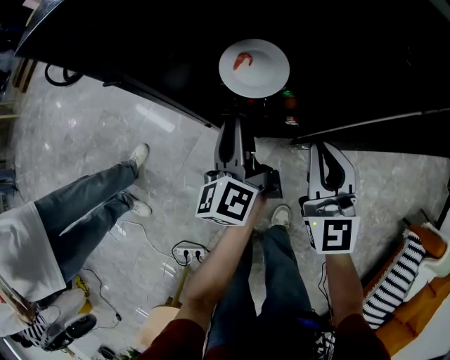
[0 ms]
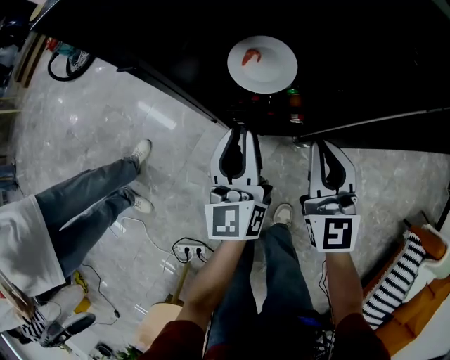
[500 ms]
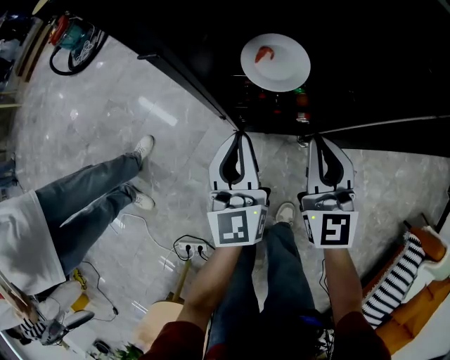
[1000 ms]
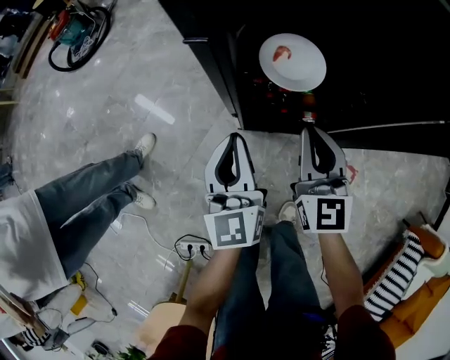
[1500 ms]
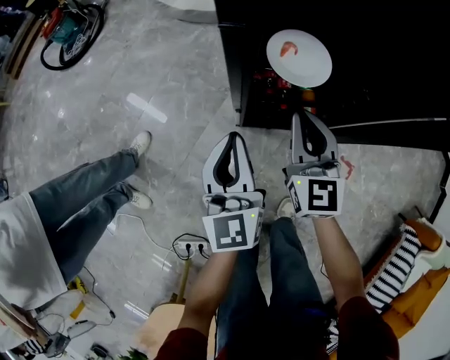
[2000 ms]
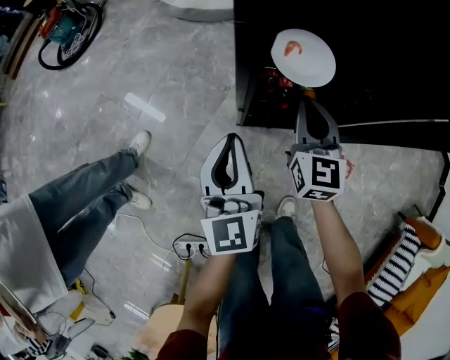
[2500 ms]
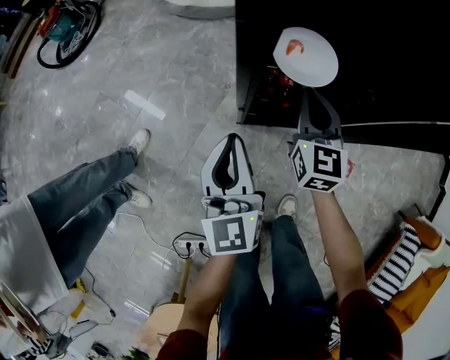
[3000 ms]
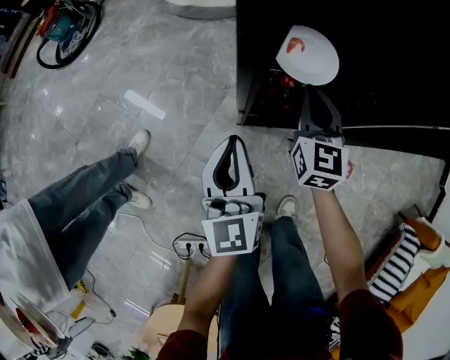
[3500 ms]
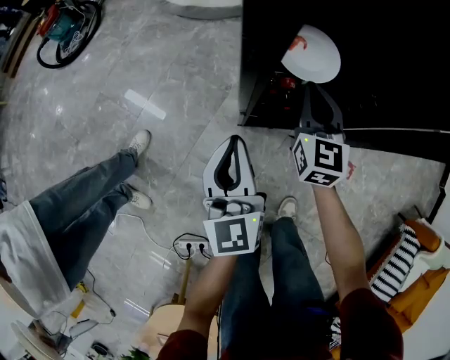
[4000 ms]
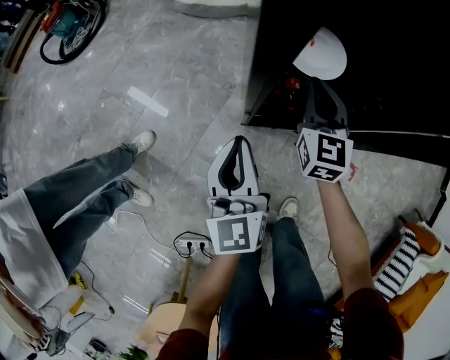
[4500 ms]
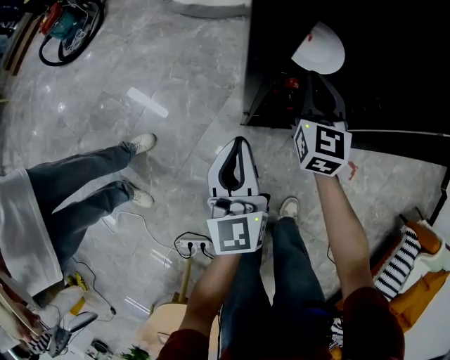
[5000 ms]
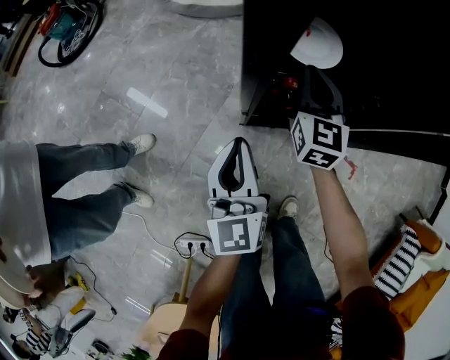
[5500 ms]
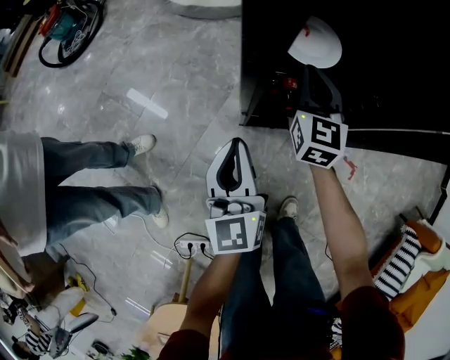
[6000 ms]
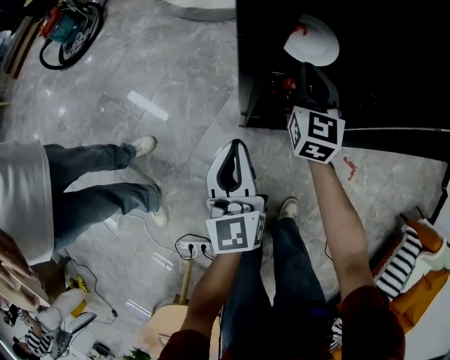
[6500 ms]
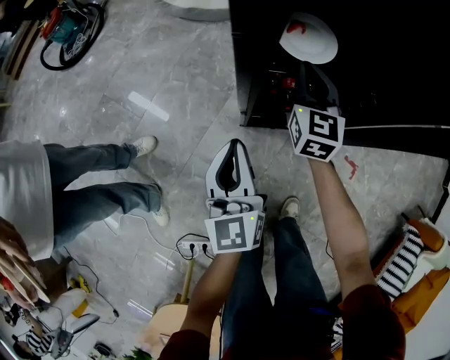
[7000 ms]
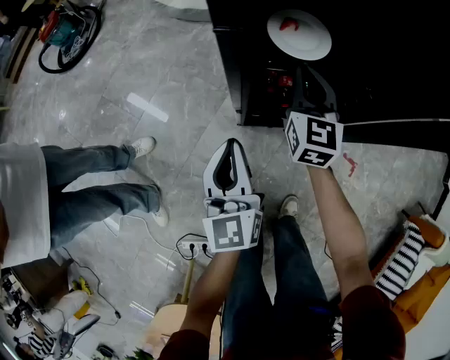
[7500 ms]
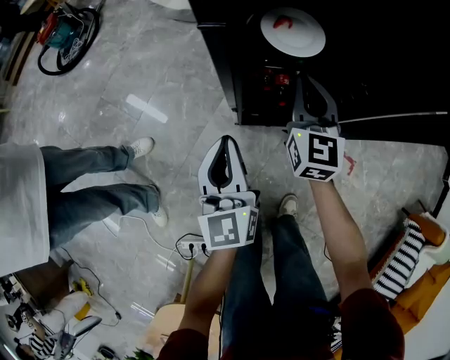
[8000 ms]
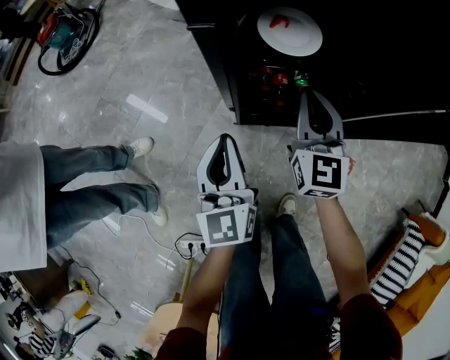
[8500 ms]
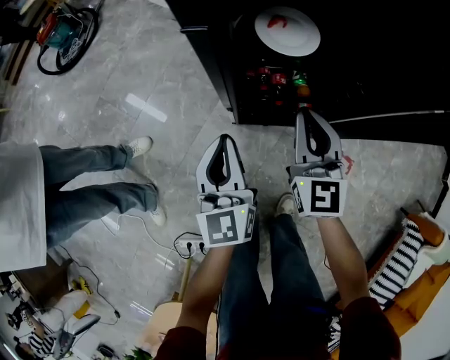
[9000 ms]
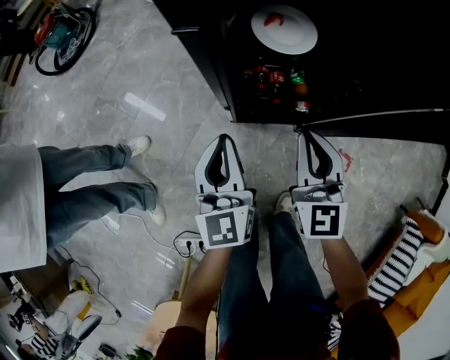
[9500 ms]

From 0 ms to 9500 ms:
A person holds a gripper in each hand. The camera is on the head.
From 0 ms to 2000 ms: The right gripper moves to the left and forward, about 10 cm. The left gripper moves to the left and backward, approximately 10 cm, and rolls clockwise, seen from behind, by about 40 degrees.
From 2000 ms to 4000 ms: The right gripper moves forward, approximately 10 cm.
From 4000 ms to 7500 ms: The grippers move only a little.
From 7500 ms to 9500 ms: The right gripper goes some 15 cm backward.

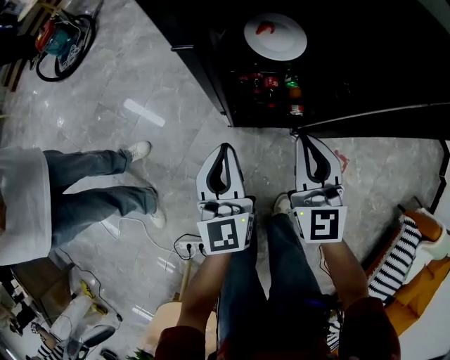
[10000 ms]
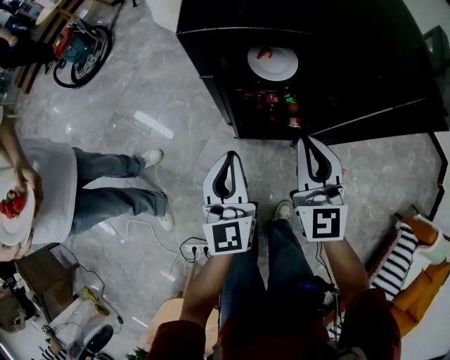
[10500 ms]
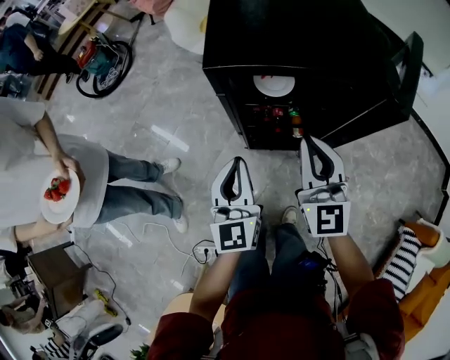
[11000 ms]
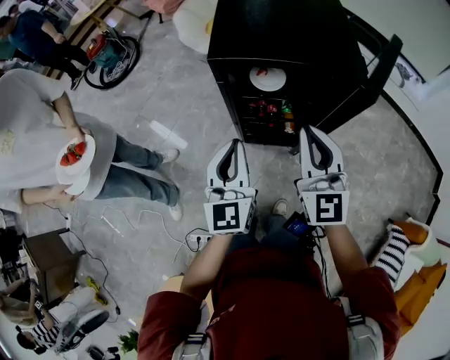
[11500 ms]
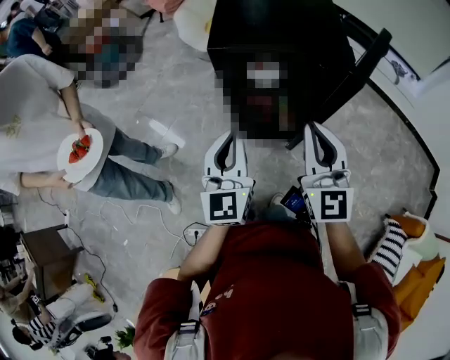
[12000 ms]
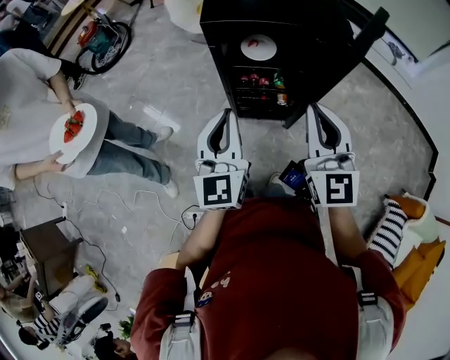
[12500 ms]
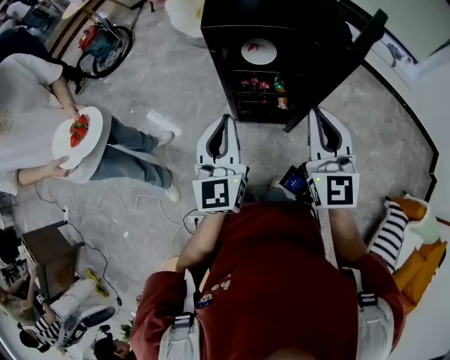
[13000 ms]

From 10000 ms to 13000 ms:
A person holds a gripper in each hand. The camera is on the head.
From 10000 ms to 11500 ms: Both grippers move upward, approximately 25 cm.
From 11500 ms to 13000 ms: The right gripper shifts about 5 cm backward; the left gripper moves roughly 5 cm.

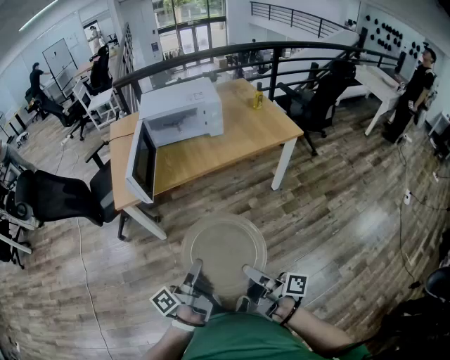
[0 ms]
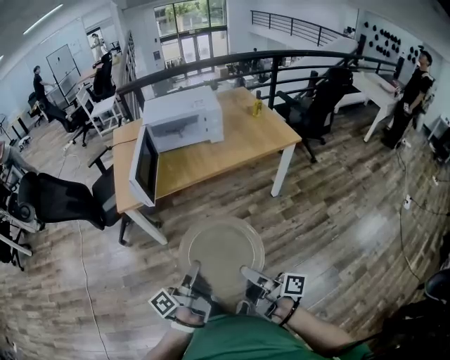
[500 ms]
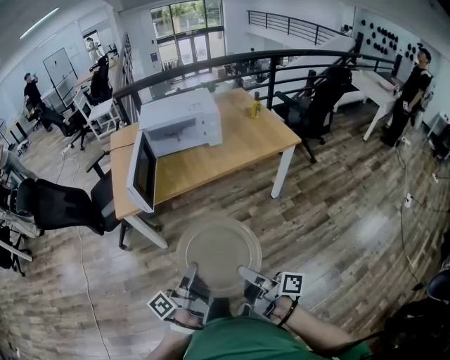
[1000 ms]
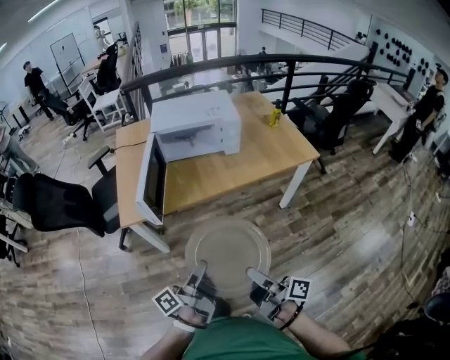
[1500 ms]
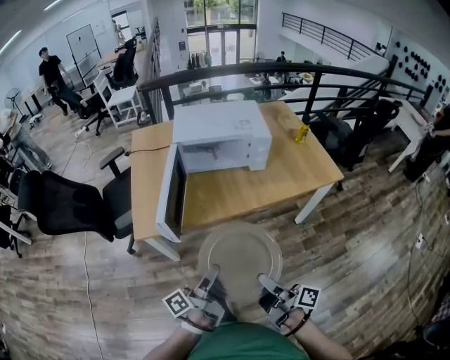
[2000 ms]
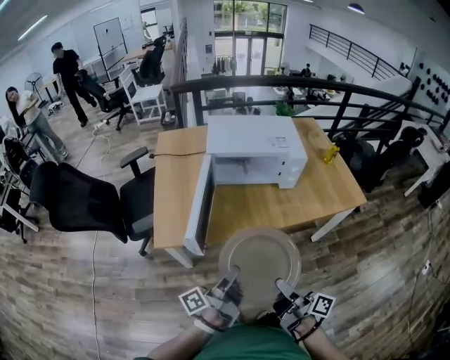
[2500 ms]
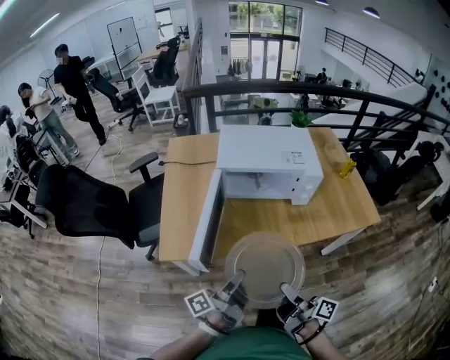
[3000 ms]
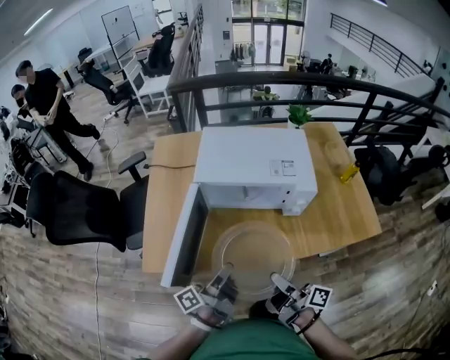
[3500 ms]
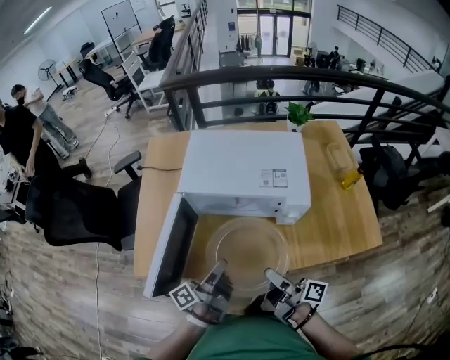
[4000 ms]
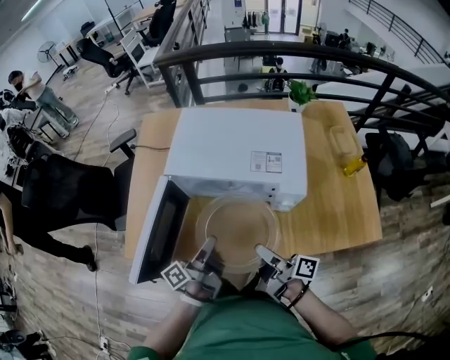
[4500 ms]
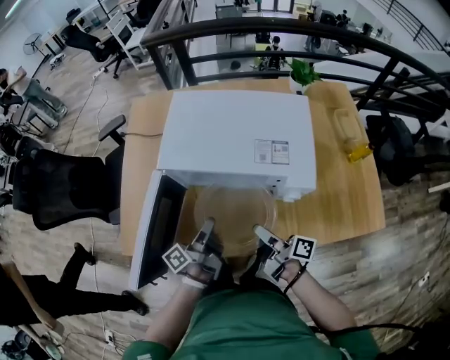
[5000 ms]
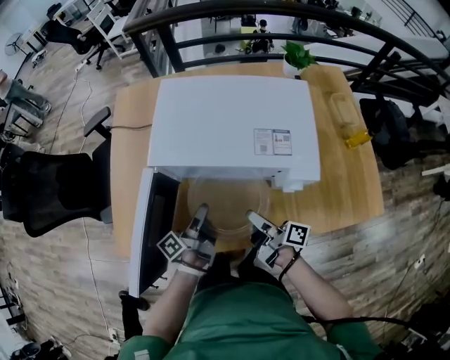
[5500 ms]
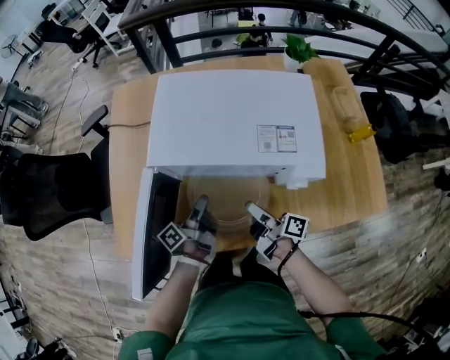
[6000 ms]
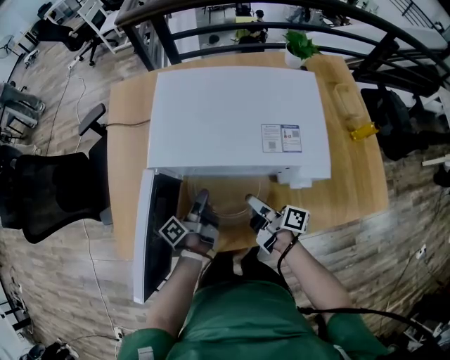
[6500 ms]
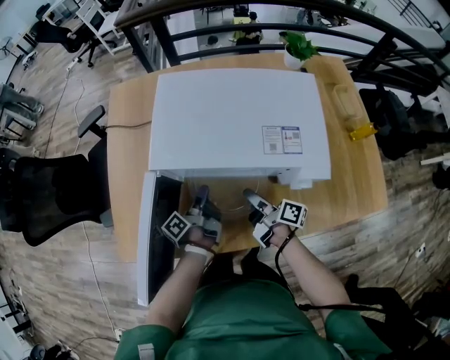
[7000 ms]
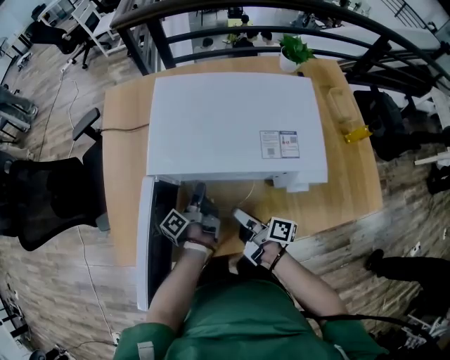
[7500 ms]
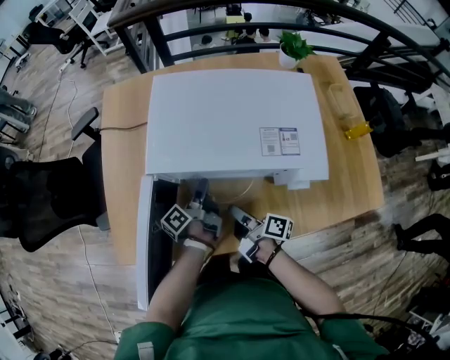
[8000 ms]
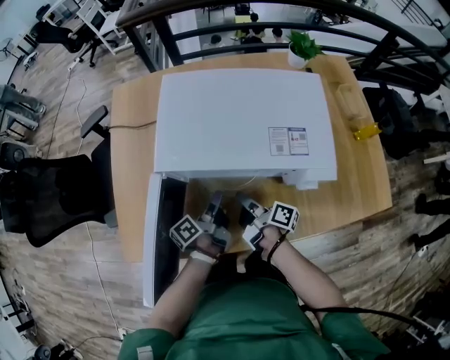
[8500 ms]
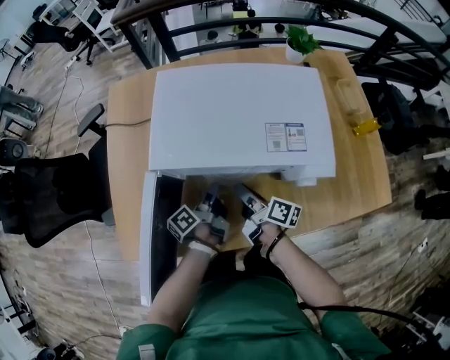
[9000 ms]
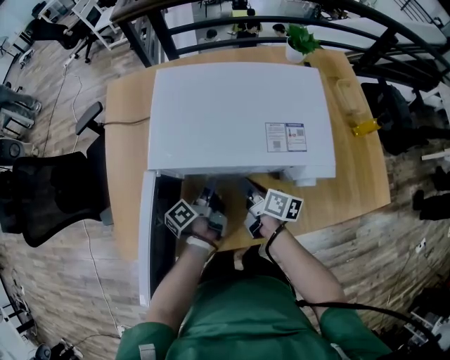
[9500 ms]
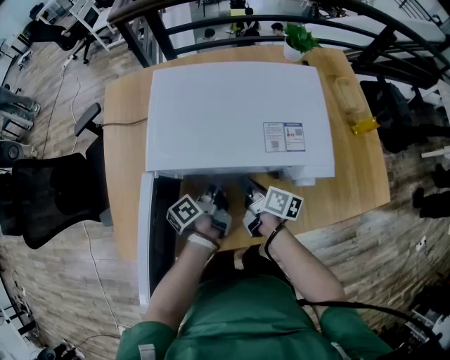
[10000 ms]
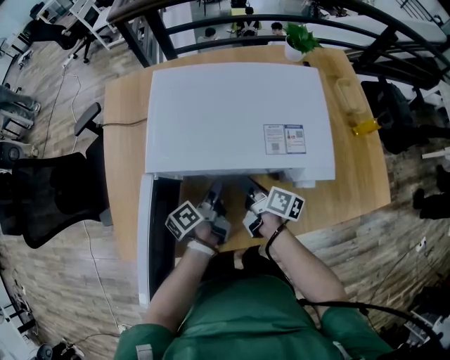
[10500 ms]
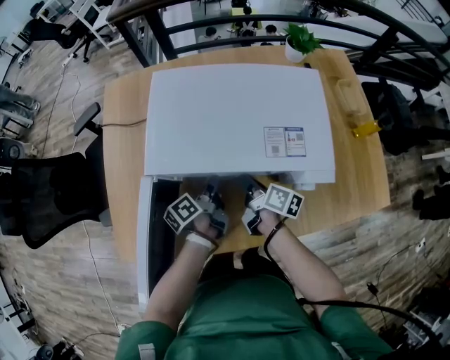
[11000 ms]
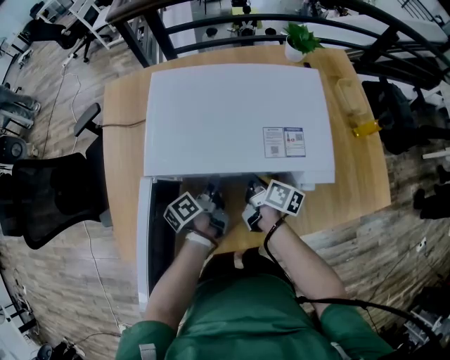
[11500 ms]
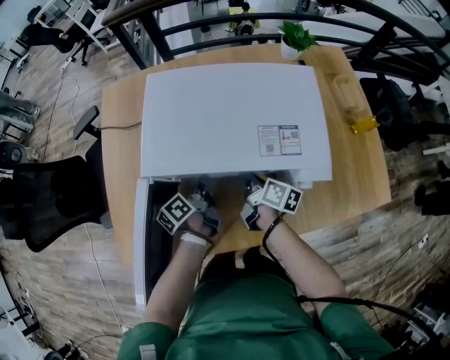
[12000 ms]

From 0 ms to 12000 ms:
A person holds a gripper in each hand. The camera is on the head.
From 0 ms to 2000 ms: The right gripper moves approximately 25 cm.
From 2000 ms to 4000 ms: The right gripper moves some 40 cm.
From 4000 ms to 6000 ms: The right gripper moves roughly 20 cm.
From 6000 ms to 8000 ms: The right gripper ends up approximately 5 cm from where it was.
From 8000 ms to 10000 ms: The right gripper changes place by some 10 cm.

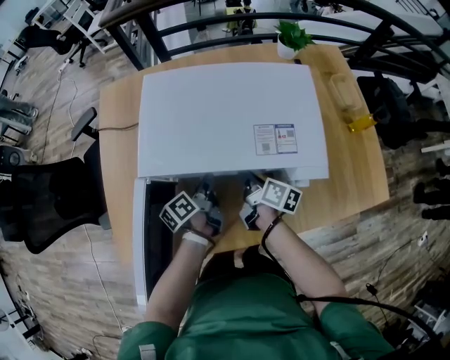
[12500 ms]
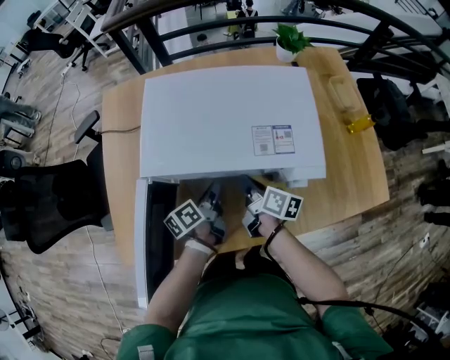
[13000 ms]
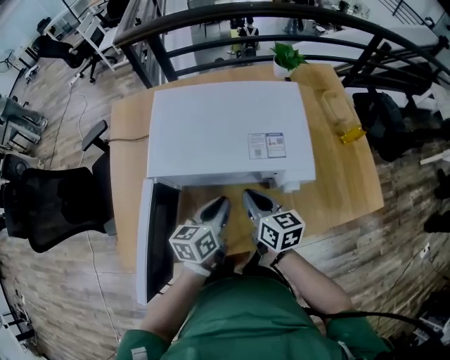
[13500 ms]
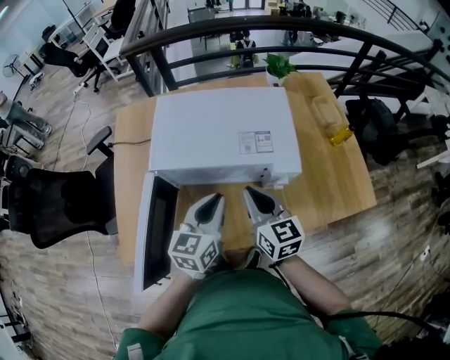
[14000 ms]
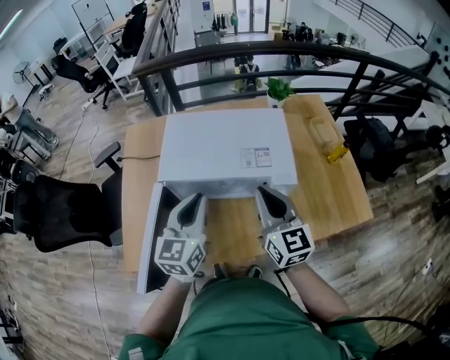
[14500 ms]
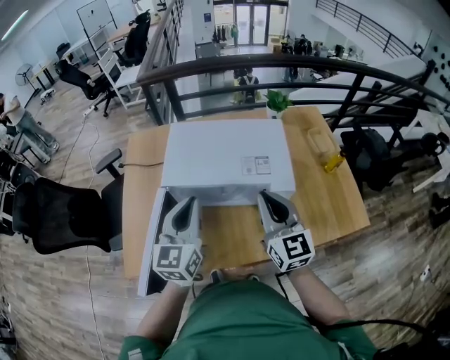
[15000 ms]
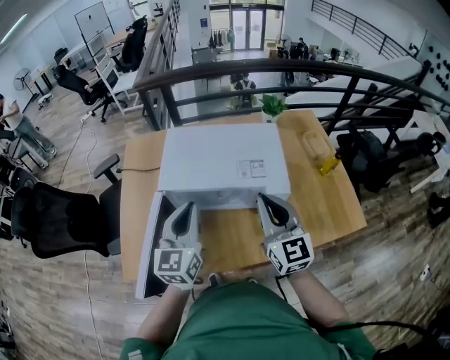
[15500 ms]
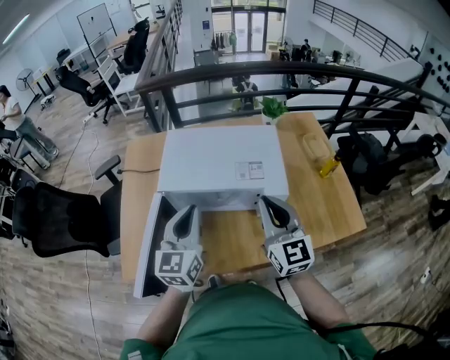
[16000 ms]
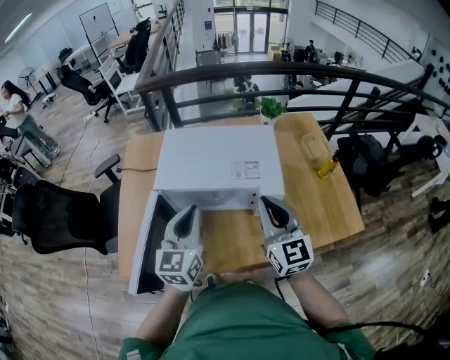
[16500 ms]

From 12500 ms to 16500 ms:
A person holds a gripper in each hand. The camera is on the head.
From 12500 ms to 14500 ms: The right gripper goes approximately 30 cm upward, and rotates around the line of its fingers by about 60 degrees, counterclockwise from behind.
From 14500 ms to 16500 ms: The right gripper moves some 5 cm.
